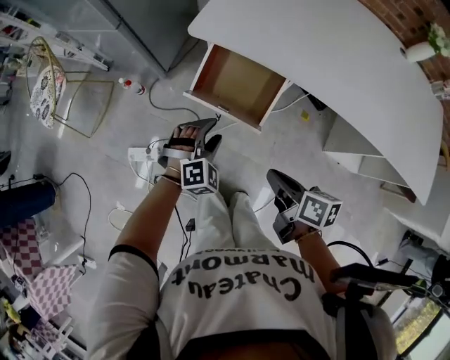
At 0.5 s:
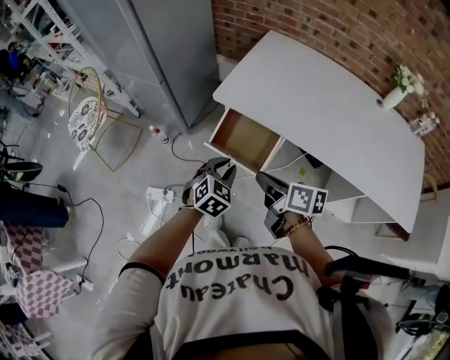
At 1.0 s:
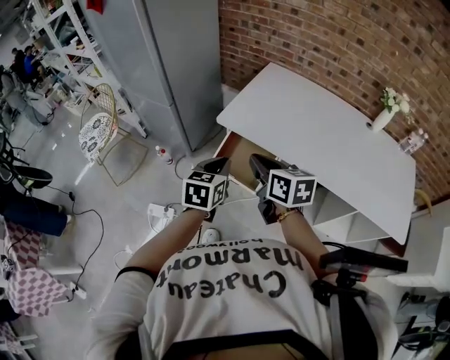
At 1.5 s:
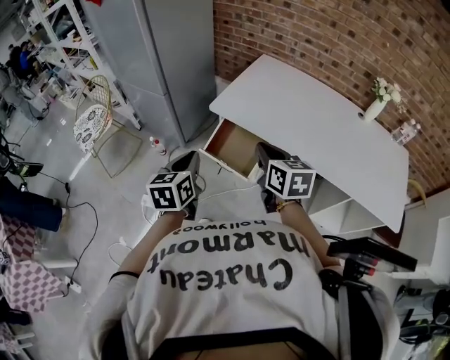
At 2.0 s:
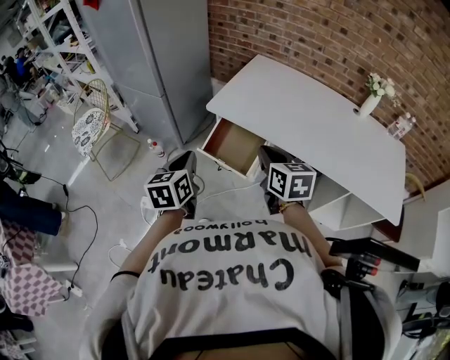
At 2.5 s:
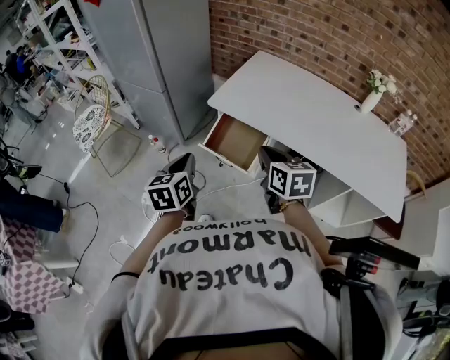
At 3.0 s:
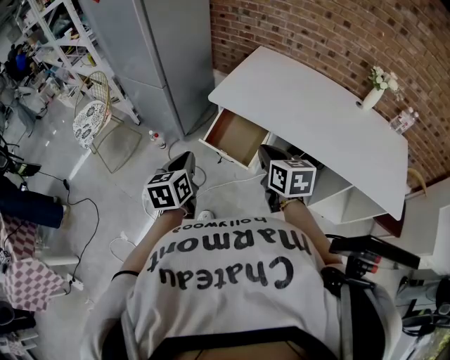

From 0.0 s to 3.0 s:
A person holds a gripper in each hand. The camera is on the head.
From 0.0 s to 1.5 s: The two grippers go about 30 cm upward. The left gripper rotates around the line of its fingers by approximately 80 degrees, counterclockwise from behind, and closes up, while the right gripper rolls counterclockwise, seen from behind, by about 40 degrees.
From 1.5 s to 3.0 s: The right gripper shifts by some 5 cm.

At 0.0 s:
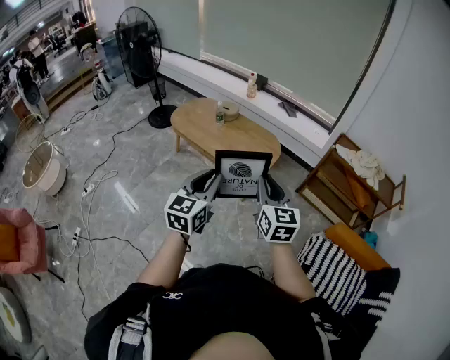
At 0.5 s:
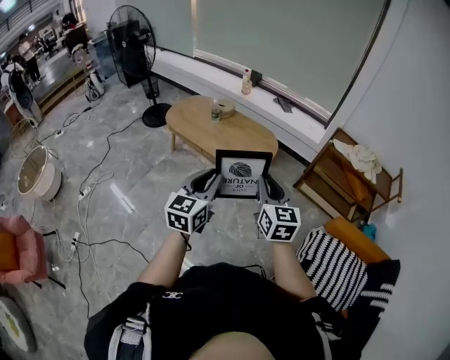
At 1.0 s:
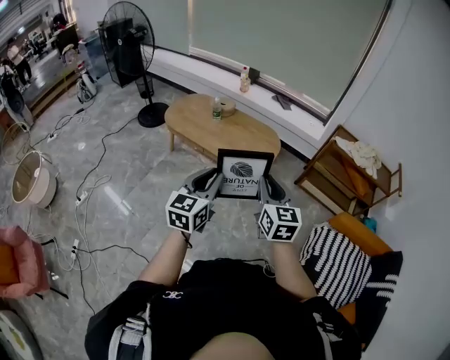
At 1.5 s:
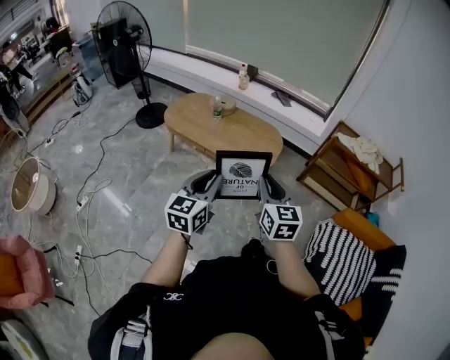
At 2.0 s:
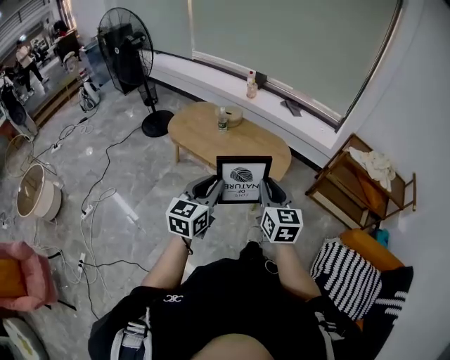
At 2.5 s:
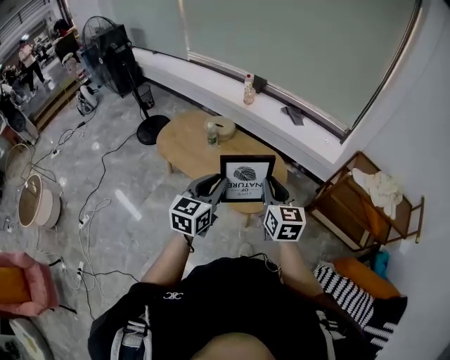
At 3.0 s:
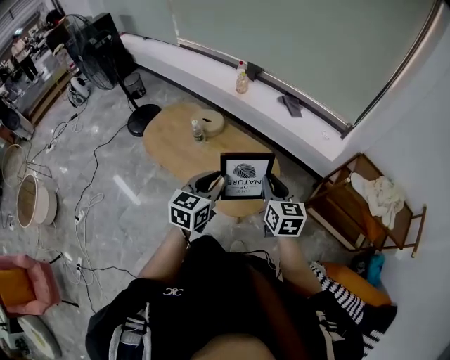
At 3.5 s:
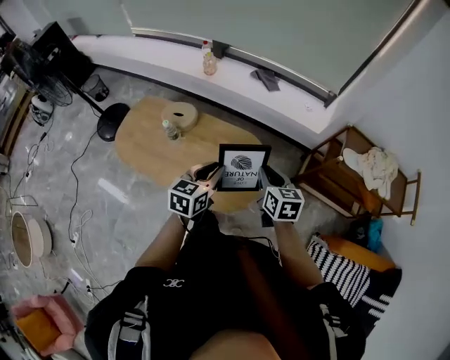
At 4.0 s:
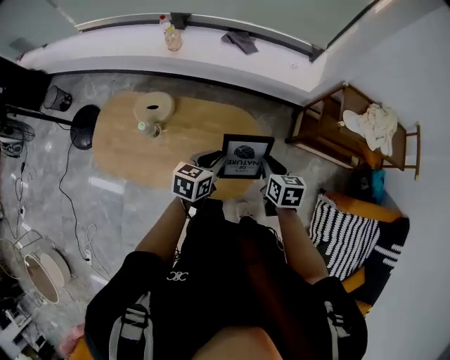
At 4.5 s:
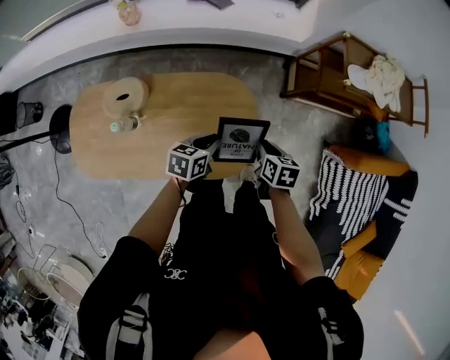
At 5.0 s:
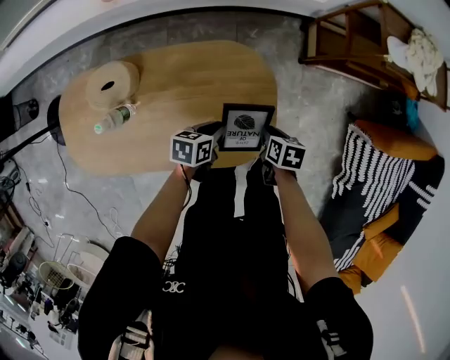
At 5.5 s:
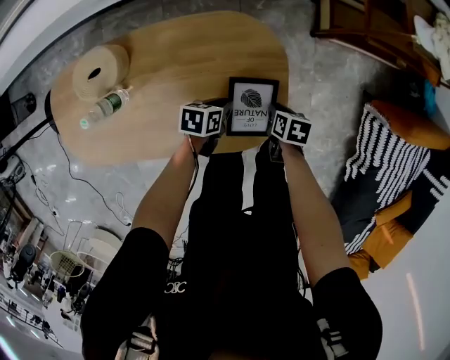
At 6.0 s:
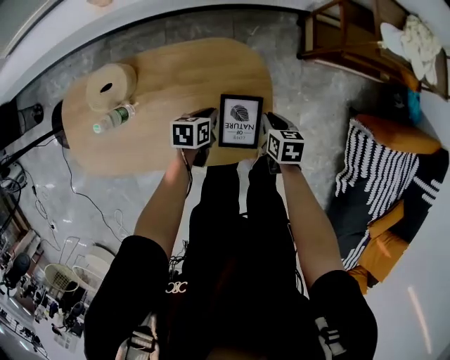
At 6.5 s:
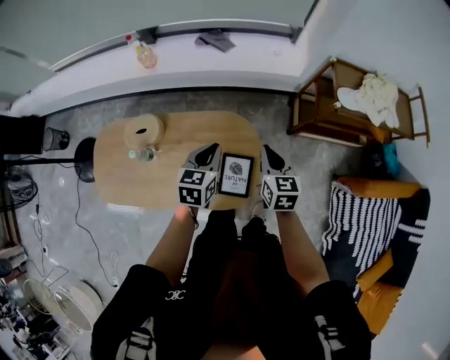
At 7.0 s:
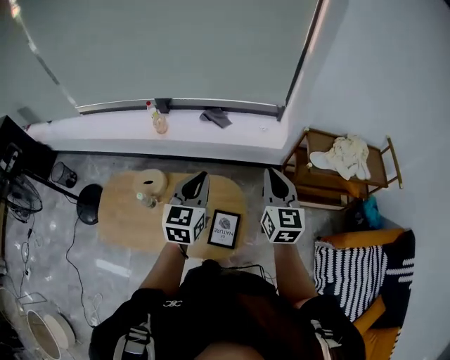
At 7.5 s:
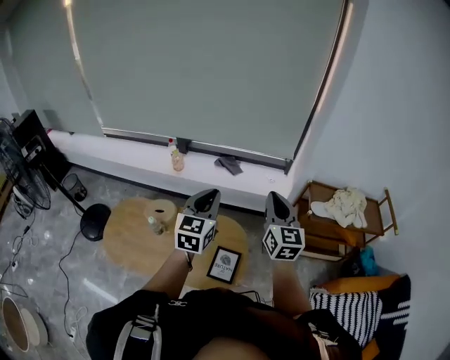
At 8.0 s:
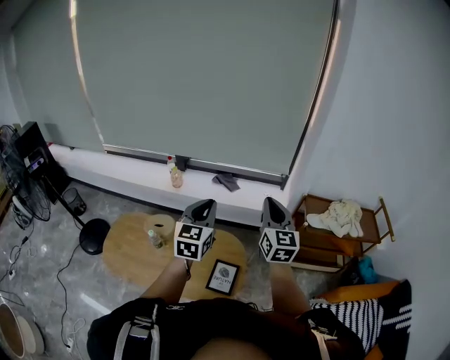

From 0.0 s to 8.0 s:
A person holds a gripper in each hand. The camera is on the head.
From 0.0 s to 2.0 s: Both grippers travel together forward and to the left, roughly 20 cm.
From 2.0 s to 4.0 s: Both grippers are carried roughly 70 cm. The right gripper tilts its fingers roughly 30 degrees downward, while the left gripper rotates some 50 degrees.
From 4.0 s to 6.0 s: The two grippers go about 35 cm downward. The left gripper turns by approximately 30 degrees.
From 6.0 s to 8.0 s: The two grippers go some 70 cm upward. The left gripper tips its fingers upward by approximately 50 degrees. The right gripper points its fingers some 60 degrees further upward.

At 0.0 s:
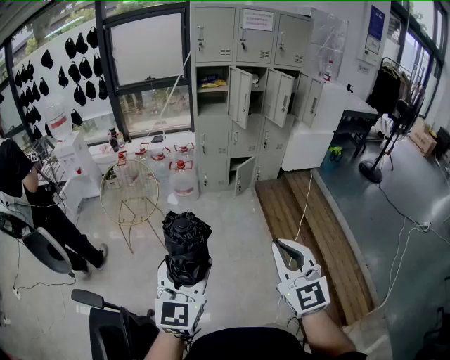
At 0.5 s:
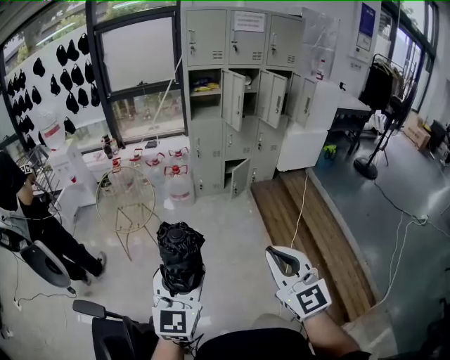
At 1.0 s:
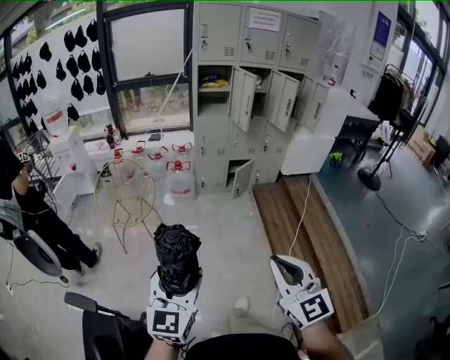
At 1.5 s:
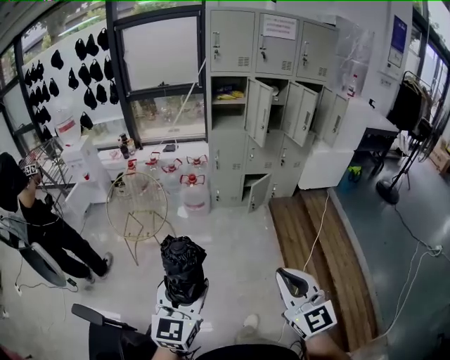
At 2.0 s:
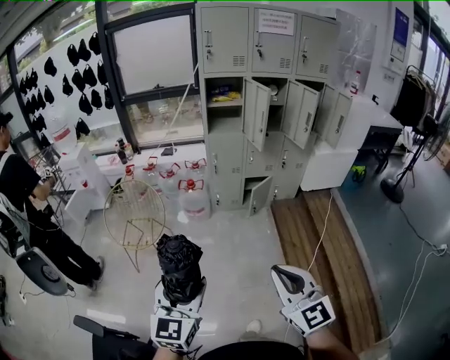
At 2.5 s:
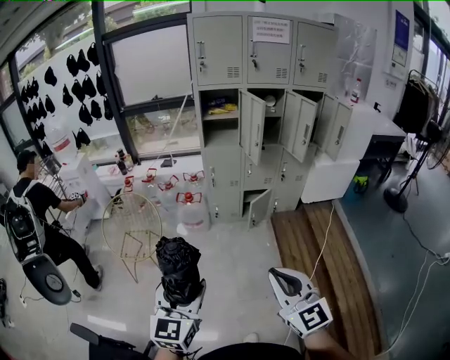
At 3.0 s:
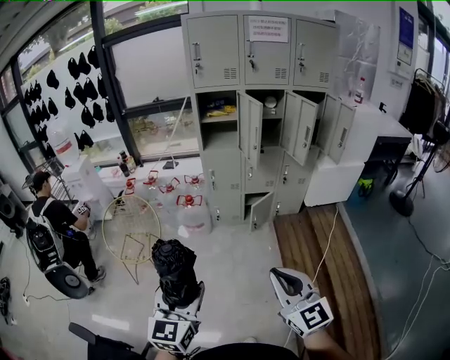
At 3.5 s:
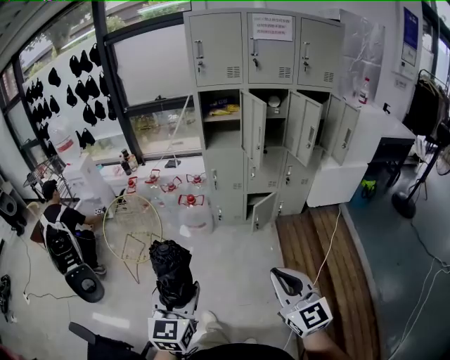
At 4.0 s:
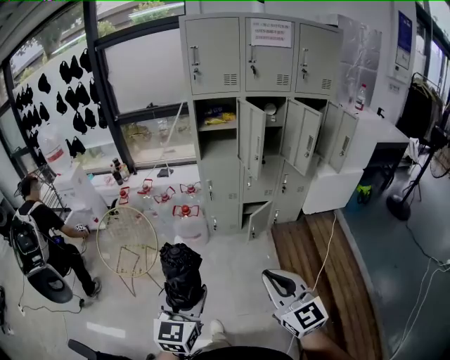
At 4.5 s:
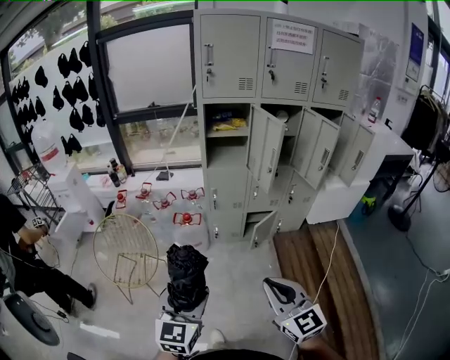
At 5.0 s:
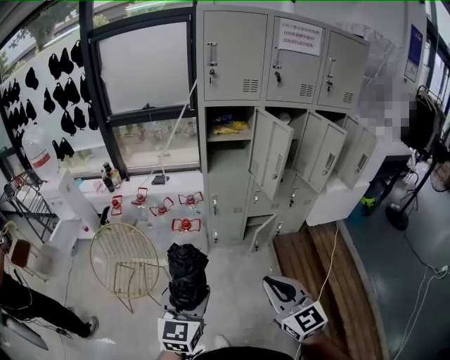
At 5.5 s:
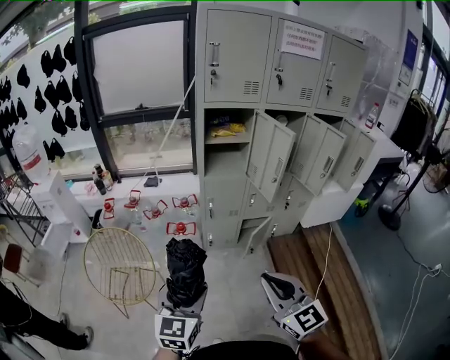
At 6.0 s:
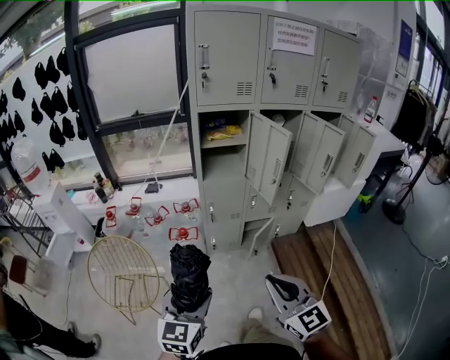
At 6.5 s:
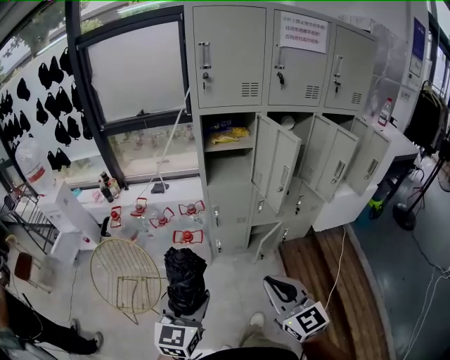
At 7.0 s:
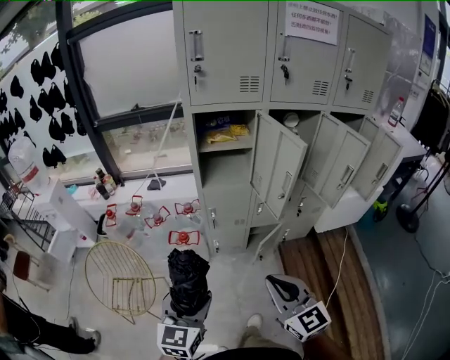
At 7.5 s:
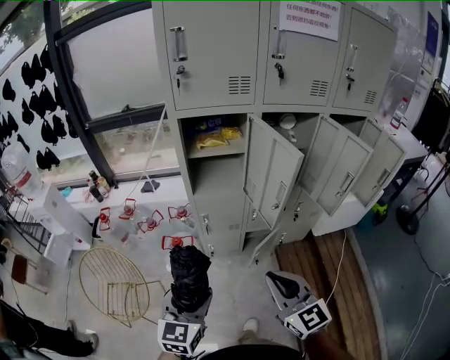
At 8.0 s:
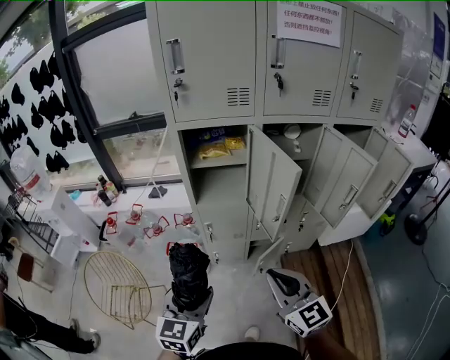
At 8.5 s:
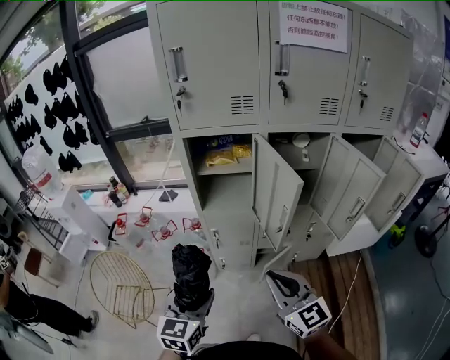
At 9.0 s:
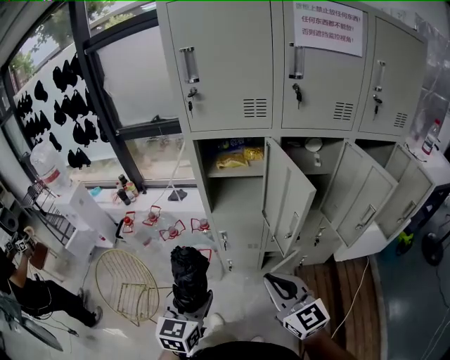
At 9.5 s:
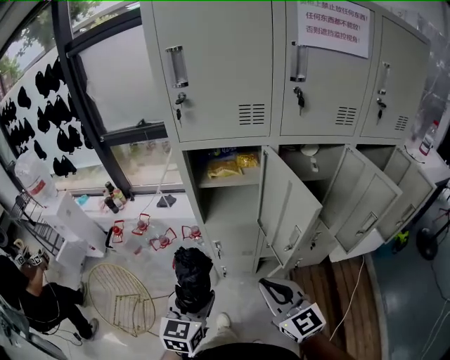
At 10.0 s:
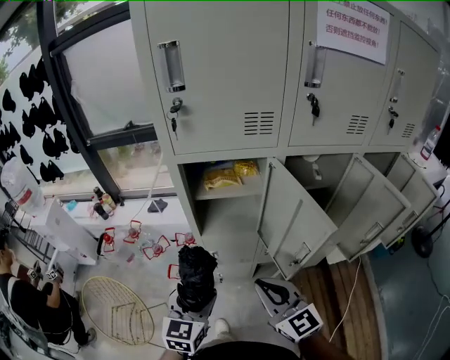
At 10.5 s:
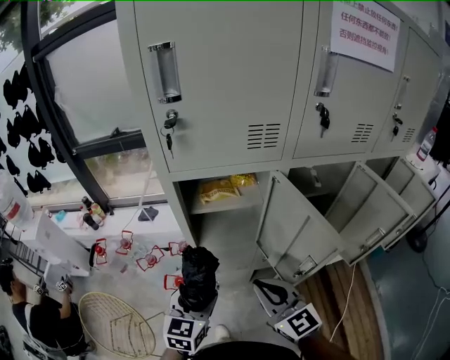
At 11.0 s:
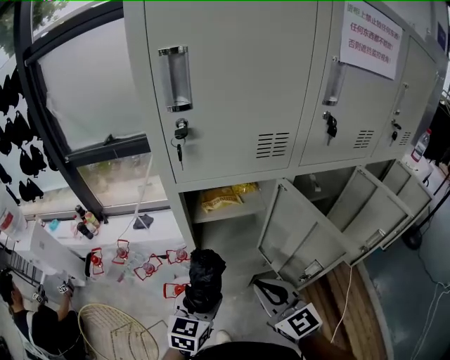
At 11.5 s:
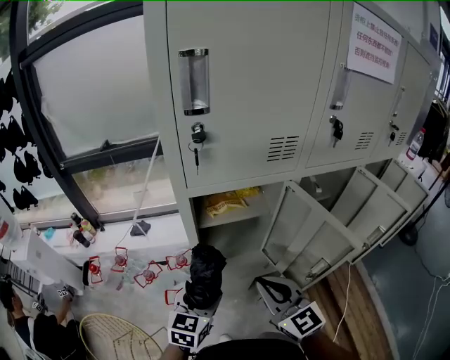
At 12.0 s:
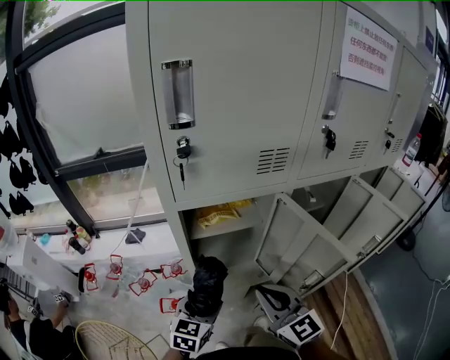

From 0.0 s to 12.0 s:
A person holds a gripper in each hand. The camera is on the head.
From 0.0 s to 2.0 s: The two grippers go roughly 20 cm forward.
From 2.0 s to 4.0 s: The grippers both shift forward and to the right by roughly 15 cm.
From 4.0 s to 6.0 s: The right gripper goes approximately 20 cm forward and to the left, while the left gripper shifts approximately 20 cm forward.
From 6.0 s to 8.0 s: Both grippers travel together forward and to the right, approximately 25 cm.
From 8.0 s to 10.0 s: Both grippers move forward, some 15 cm.
From 10.0 s to 12.0 s: The two grippers go about 10 cm forward.

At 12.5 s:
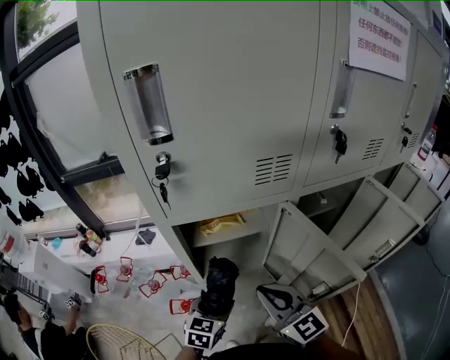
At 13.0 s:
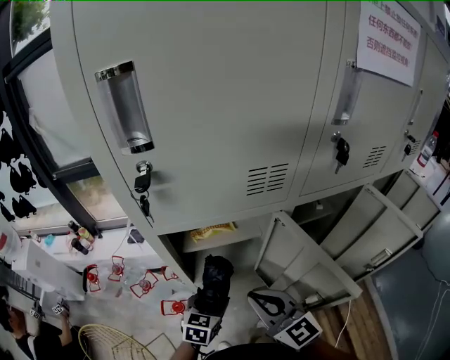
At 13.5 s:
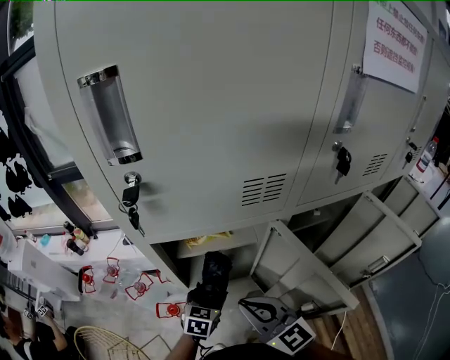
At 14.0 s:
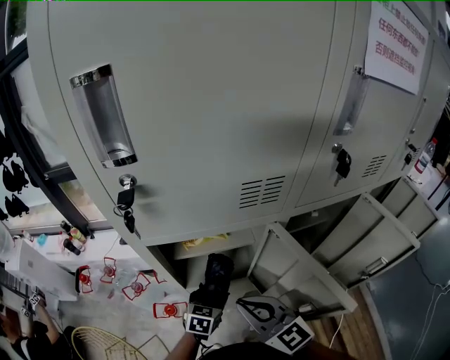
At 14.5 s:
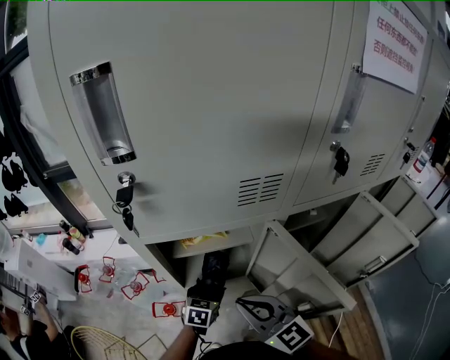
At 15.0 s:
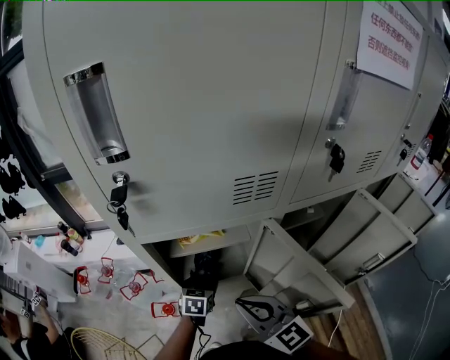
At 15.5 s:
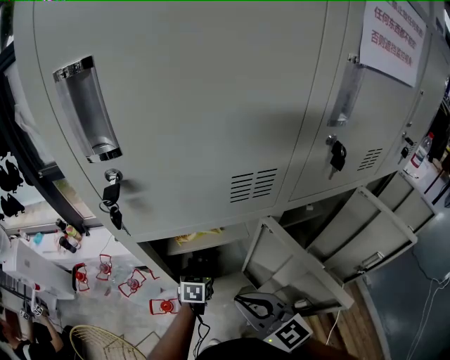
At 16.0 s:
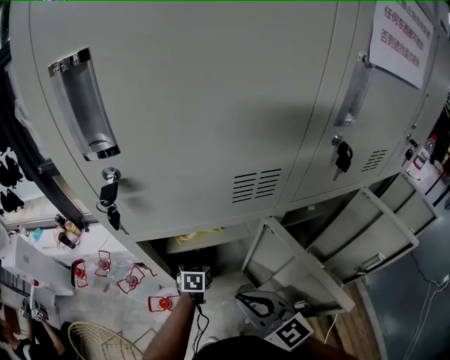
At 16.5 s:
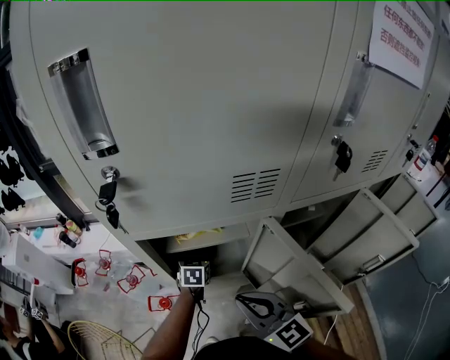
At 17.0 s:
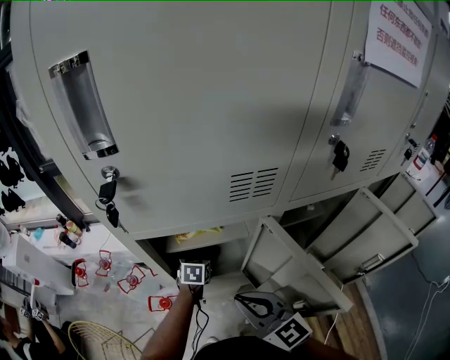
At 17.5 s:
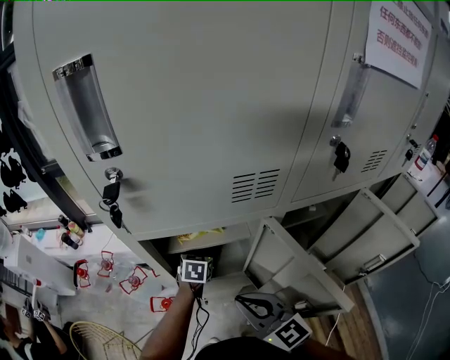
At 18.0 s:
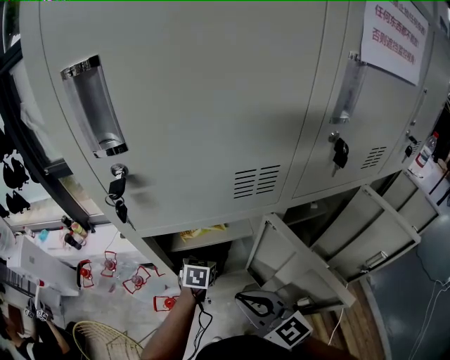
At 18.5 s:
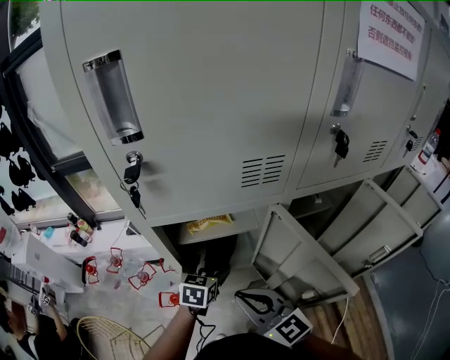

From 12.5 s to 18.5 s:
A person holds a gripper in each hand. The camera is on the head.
From 12.5 s to 14.5 s: The left gripper goes some 15 cm downward and forward.
From 14.5 s to 16.5 s: The left gripper moves forward, approximately 10 cm.
From 16.5 s to 18.5 s: The left gripper moves backward and upward, some 15 cm.
